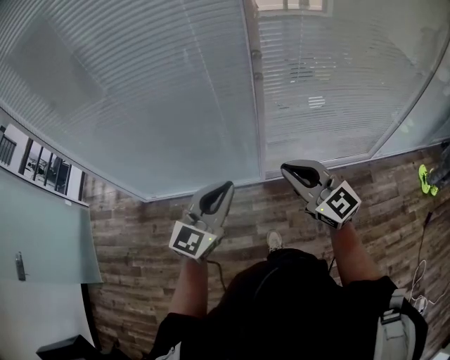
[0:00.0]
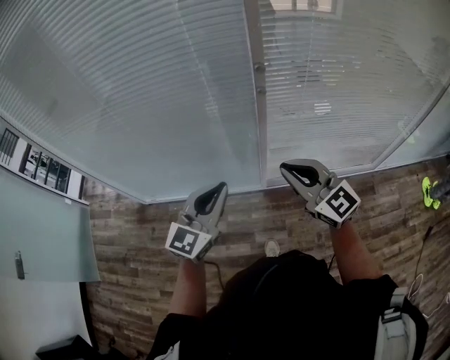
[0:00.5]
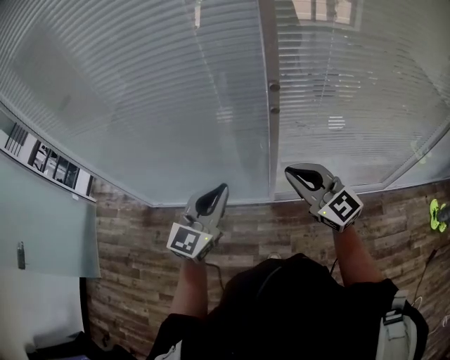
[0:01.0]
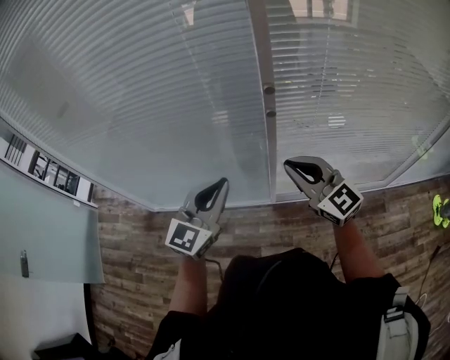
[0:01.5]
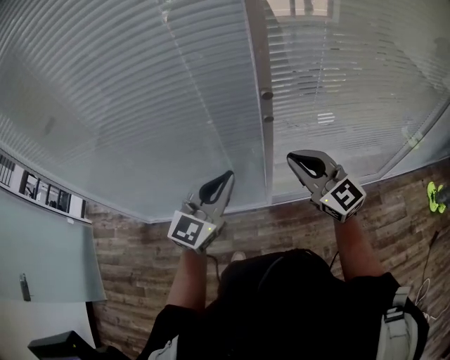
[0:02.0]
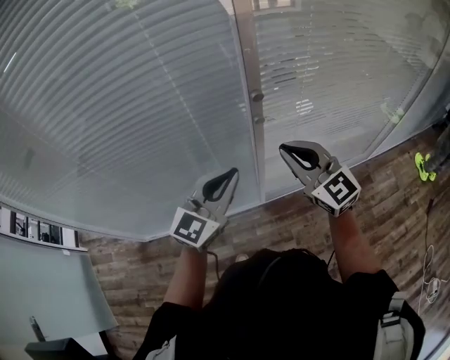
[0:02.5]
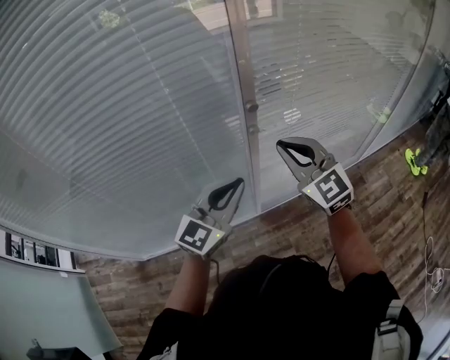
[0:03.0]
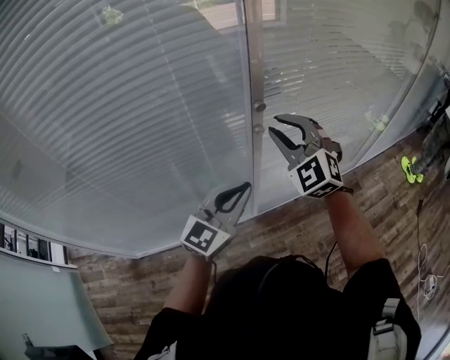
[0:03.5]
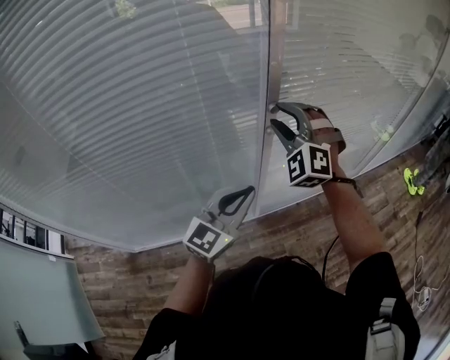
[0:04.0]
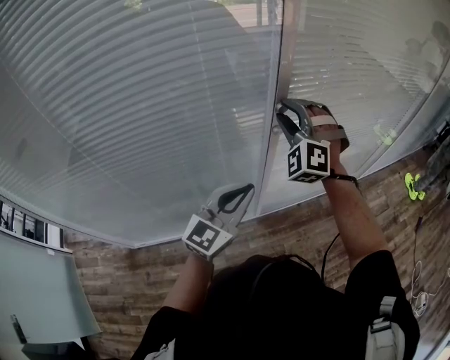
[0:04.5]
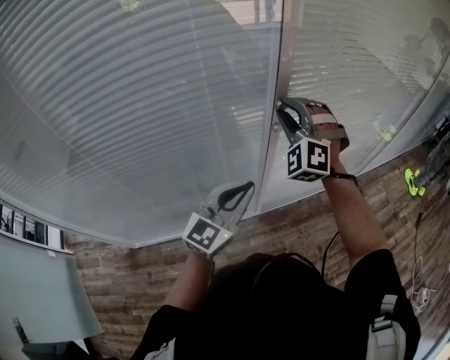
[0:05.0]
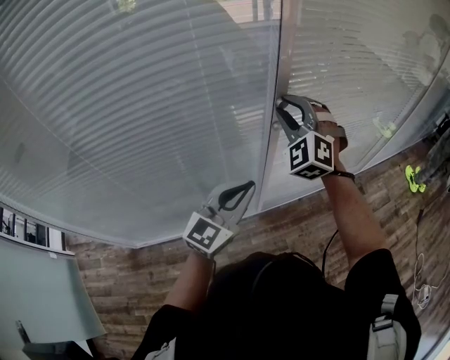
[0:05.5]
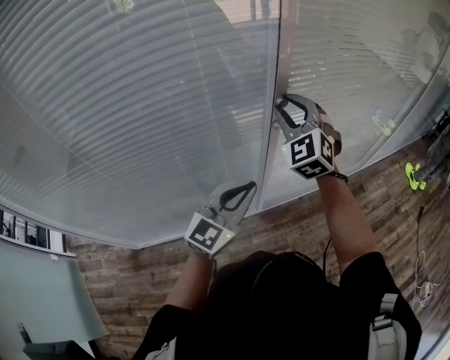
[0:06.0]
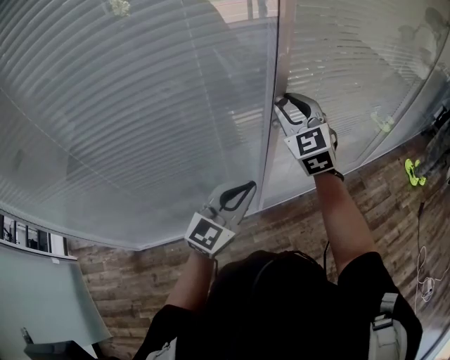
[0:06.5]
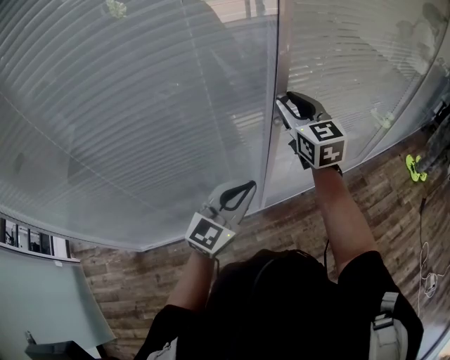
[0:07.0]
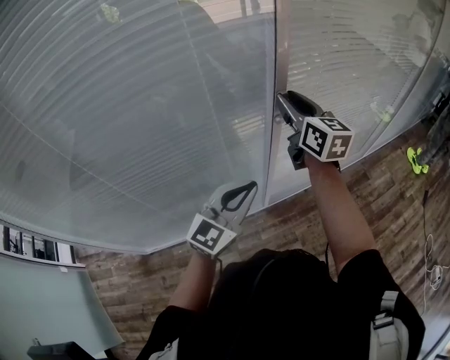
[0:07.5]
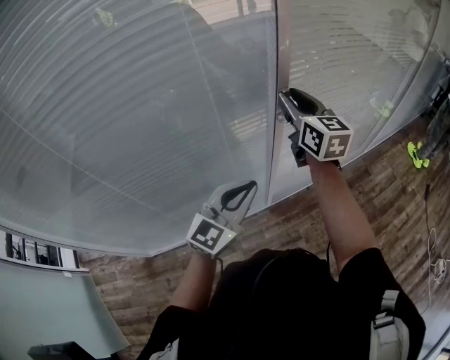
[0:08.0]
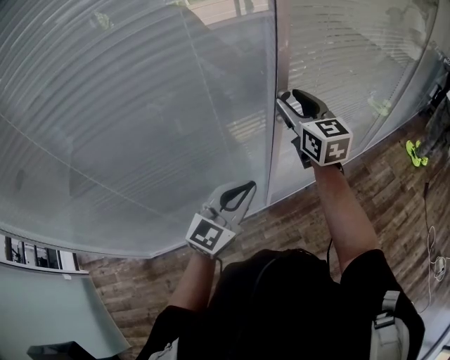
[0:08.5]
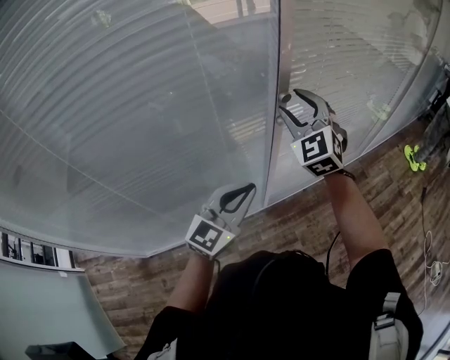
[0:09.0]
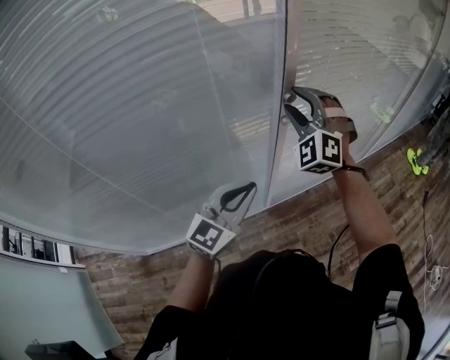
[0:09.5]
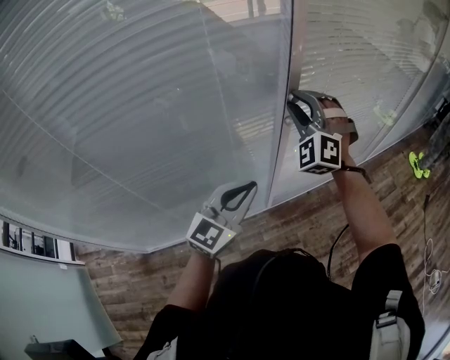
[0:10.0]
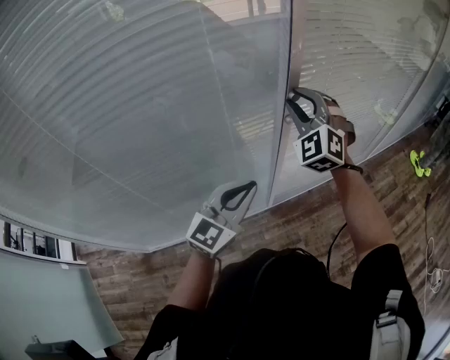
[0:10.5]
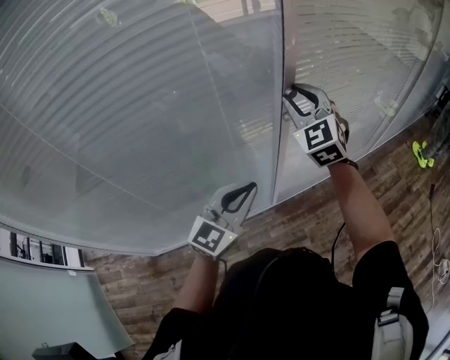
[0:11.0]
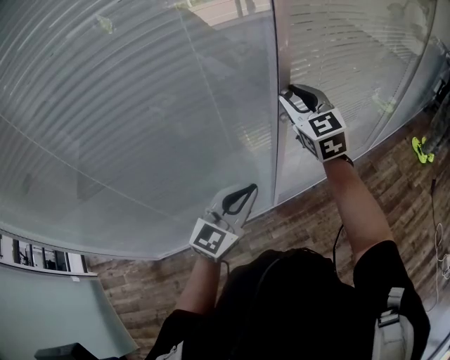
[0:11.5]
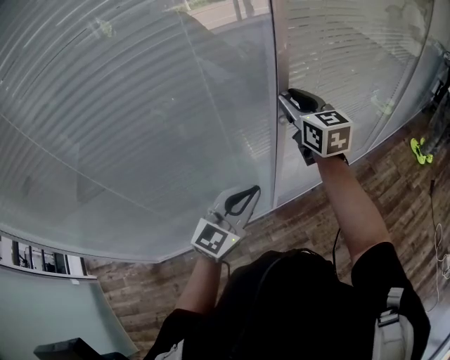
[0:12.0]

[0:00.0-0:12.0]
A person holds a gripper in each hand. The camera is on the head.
0:00.0 to 0:02.0: The two grippers go roughly 20 cm forward.
0:02.0 to 0:04.0: The right gripper shifts by approximately 15 cm, rolls counterclockwise, seen from behind, by about 60 degrees, and opens.
0:04.0 to 0:06.0: The right gripper rotates roughly 20 degrees.
0:06.0 to 0:08.0: The right gripper rotates around the line of its fingers by roughly 60 degrees, clockwise from behind.
0:08.0 to 0:10.0: The right gripper rolls counterclockwise, seen from behind, by approximately 80 degrees.
0:10.0 to 0:12.0: The right gripper rotates around the line of its fingers by about 70 degrees, clockwise from behind.

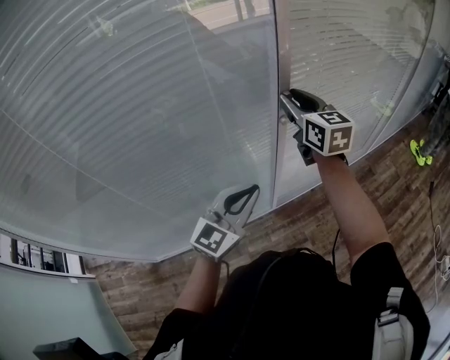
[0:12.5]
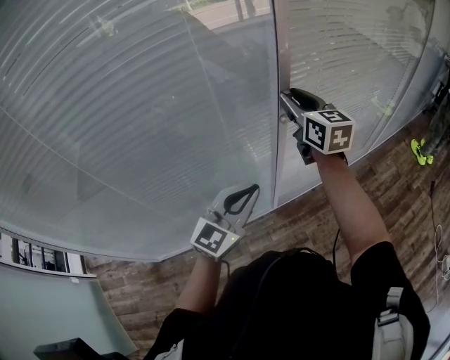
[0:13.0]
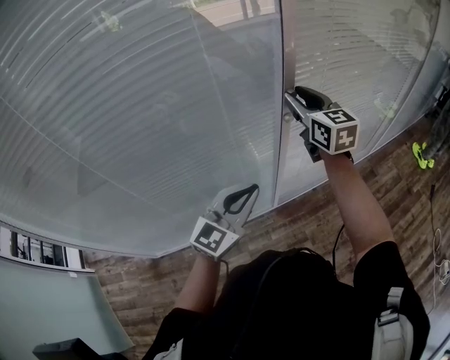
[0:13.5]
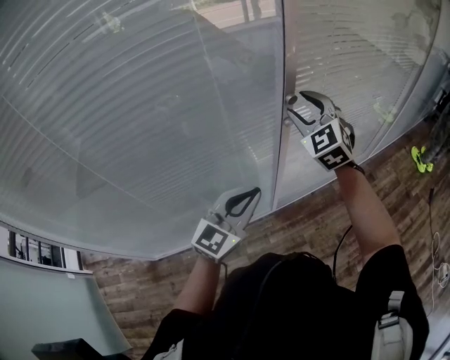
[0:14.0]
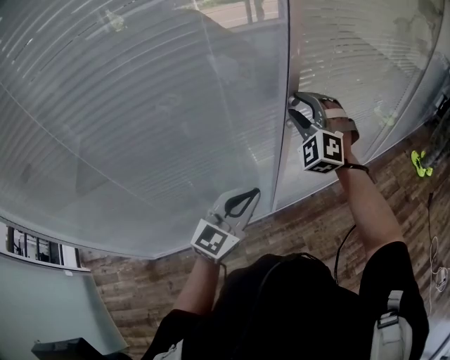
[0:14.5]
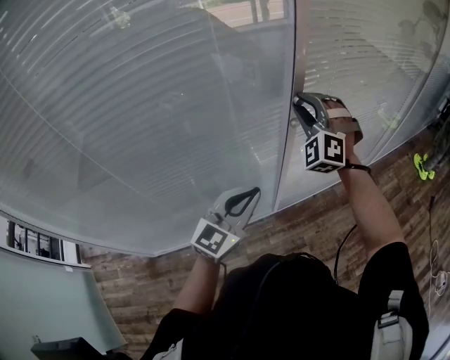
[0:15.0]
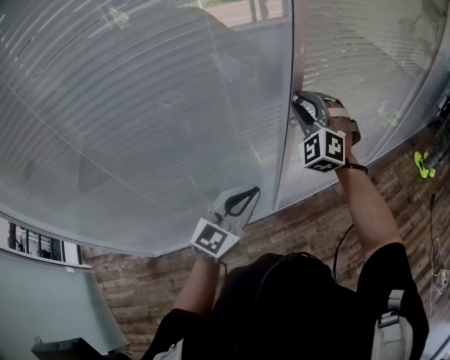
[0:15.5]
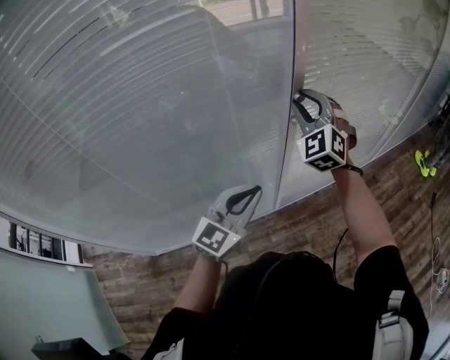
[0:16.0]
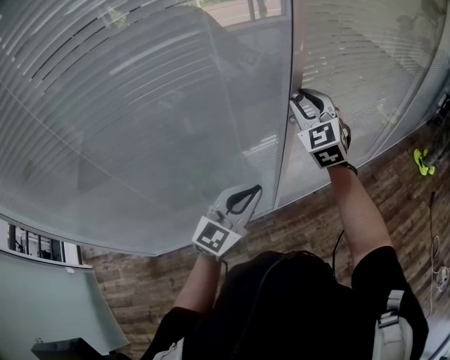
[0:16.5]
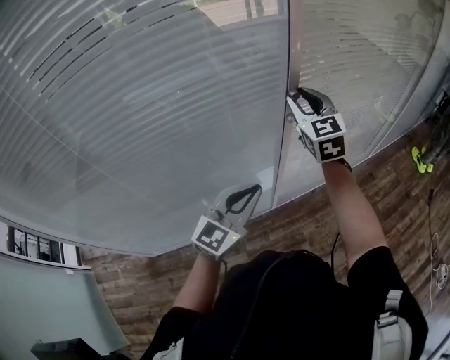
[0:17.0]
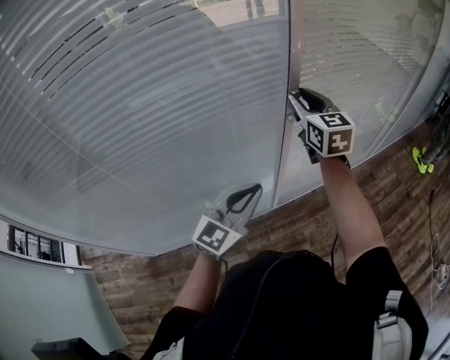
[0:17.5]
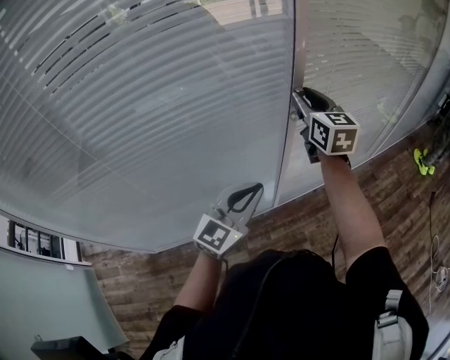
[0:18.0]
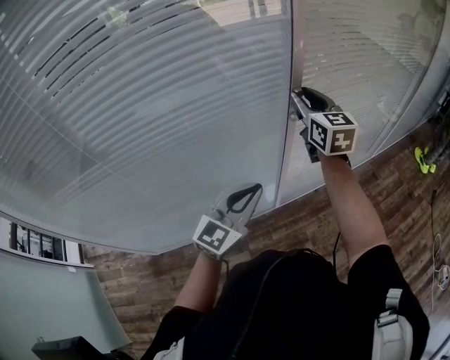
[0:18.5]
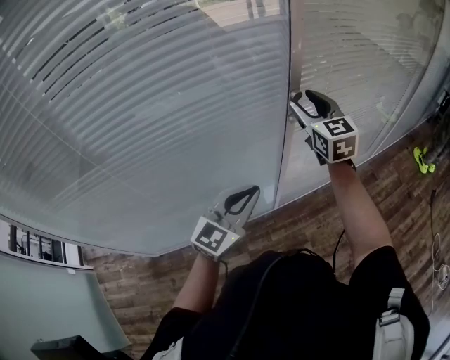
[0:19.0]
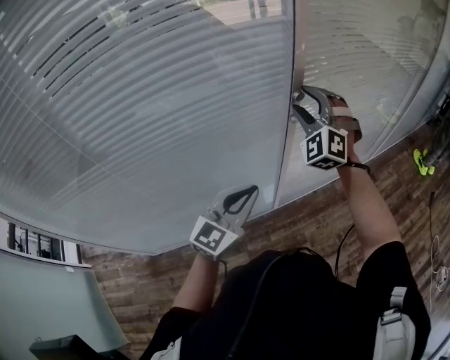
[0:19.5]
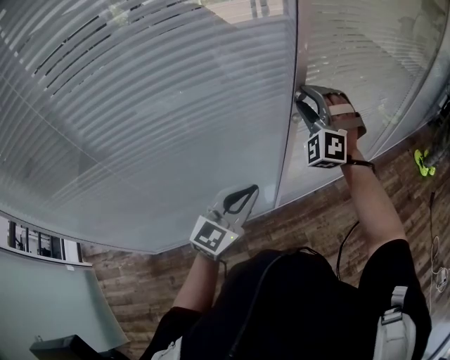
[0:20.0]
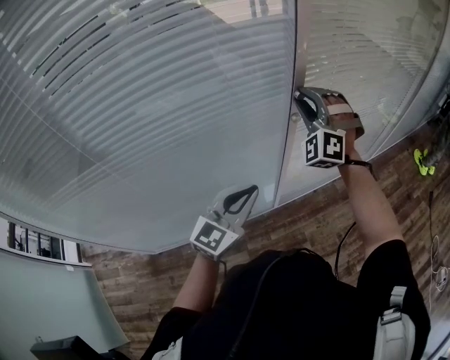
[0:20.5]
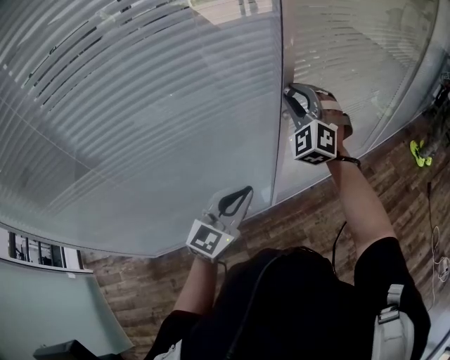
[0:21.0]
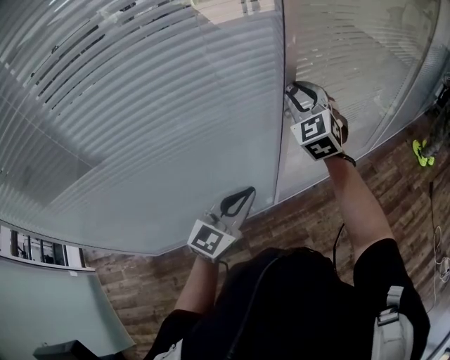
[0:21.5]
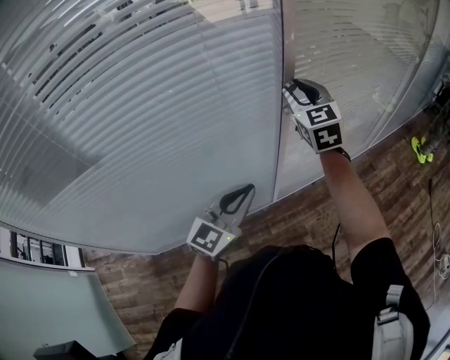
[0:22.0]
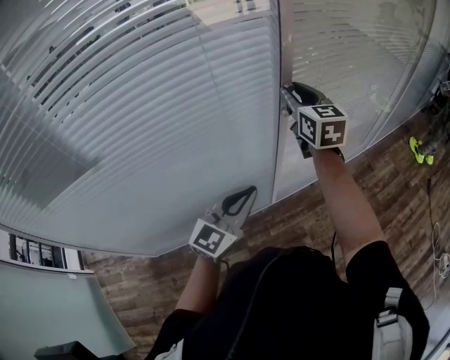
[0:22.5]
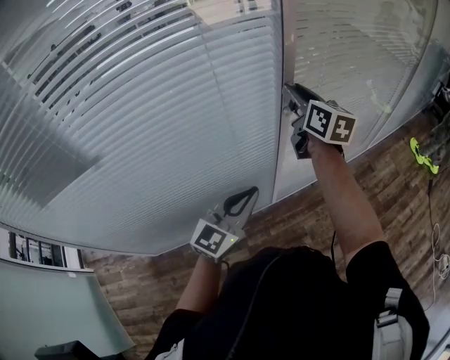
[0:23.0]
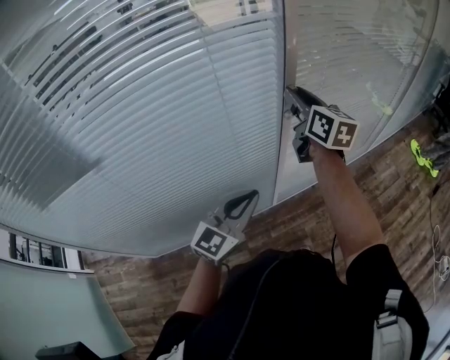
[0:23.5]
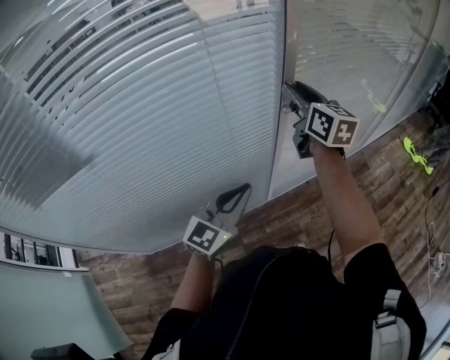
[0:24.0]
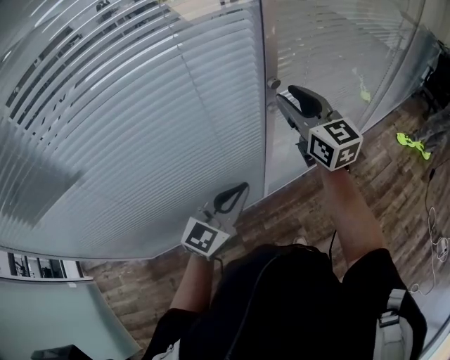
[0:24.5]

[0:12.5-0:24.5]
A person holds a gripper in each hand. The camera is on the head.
0:12.5 to 0:14.5: The right gripper rolls counterclockwise, seen from behind, by some 80 degrees.
0:14.5 to 0:16.5: The right gripper rotates about 40 degrees.
0:16.5 to 0:18.5: The right gripper changes its angle by about 40 degrees.
0:18.5 to 0:20.5: The right gripper rotates around the line of its fingers by some 80 degrees, counterclockwise from behind, and opens and closes again.
0:20.5 to 0:22.5: The right gripper twists some 80 degrees clockwise, seen from behind.
0:22.5 to 0:24.5: The right gripper moves some 5 cm.

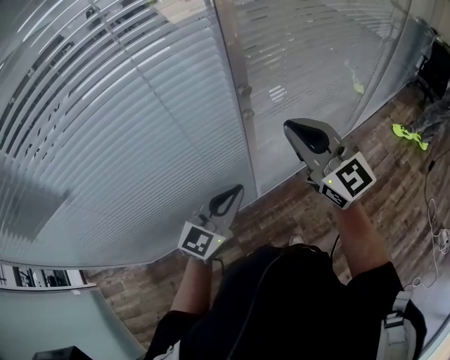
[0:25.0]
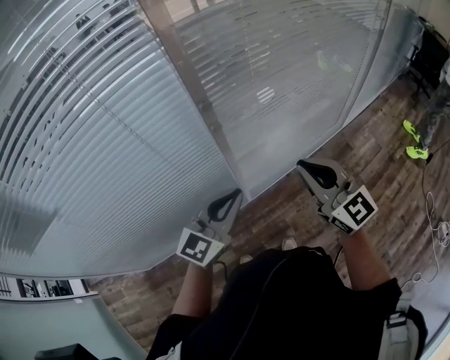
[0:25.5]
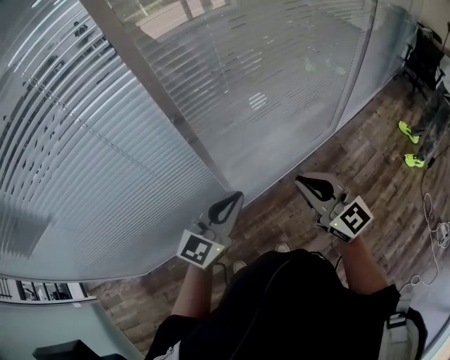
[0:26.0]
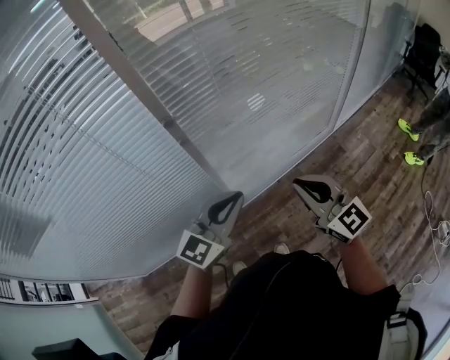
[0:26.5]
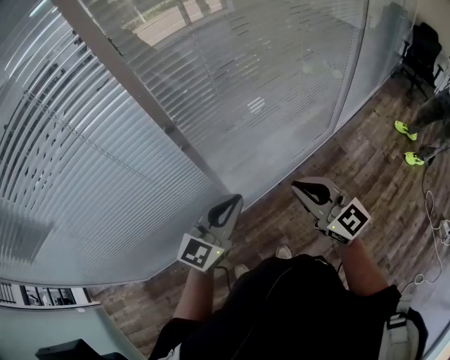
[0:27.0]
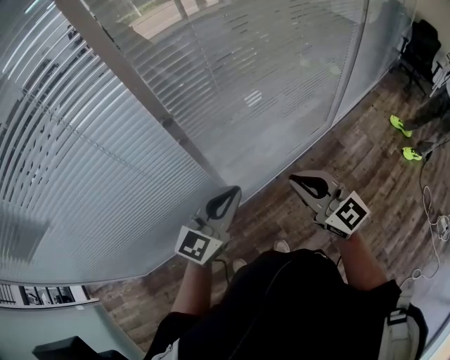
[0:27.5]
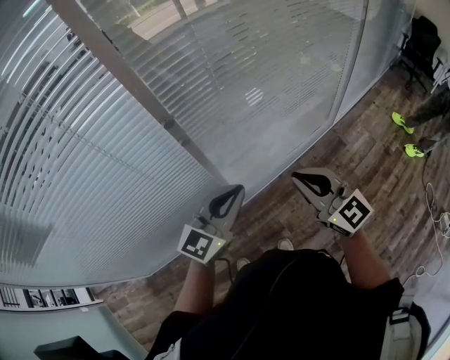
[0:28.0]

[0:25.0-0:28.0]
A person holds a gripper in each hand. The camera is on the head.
0:25.0 to 0:26.5: The right gripper travels to the right and downward by about 20 cm, while the left gripper moves to the right, about 15 cm.
0:26.5 to 0:28.0: The grippers stay close to where they were, moving slightly.
